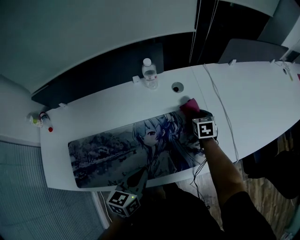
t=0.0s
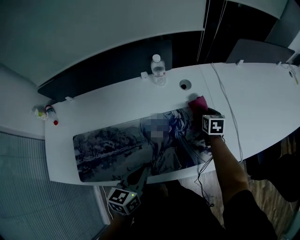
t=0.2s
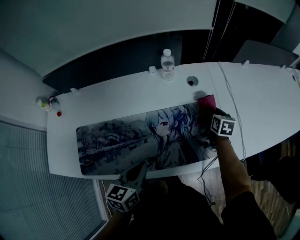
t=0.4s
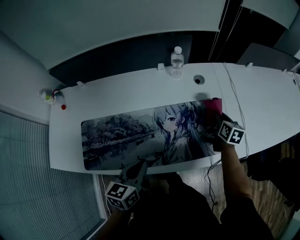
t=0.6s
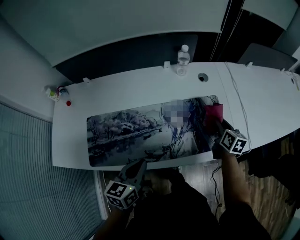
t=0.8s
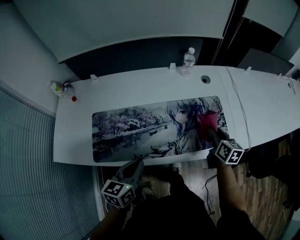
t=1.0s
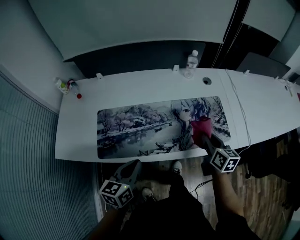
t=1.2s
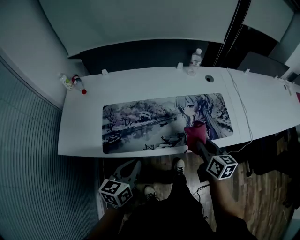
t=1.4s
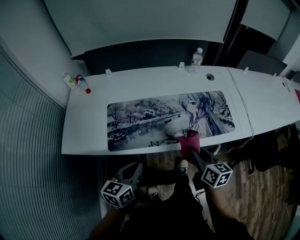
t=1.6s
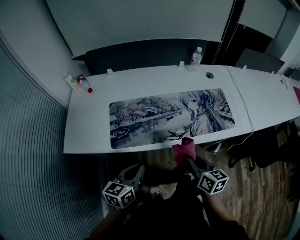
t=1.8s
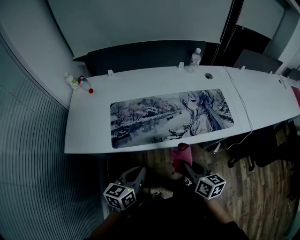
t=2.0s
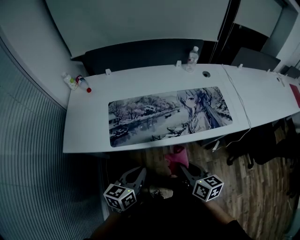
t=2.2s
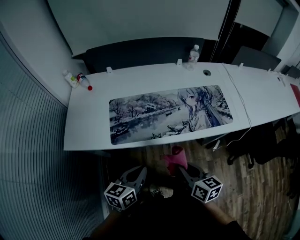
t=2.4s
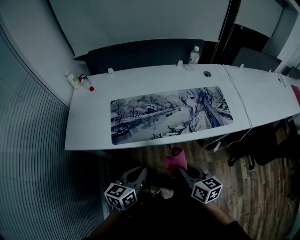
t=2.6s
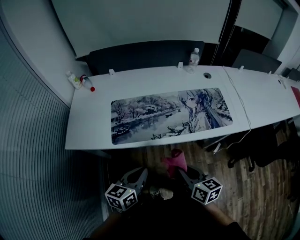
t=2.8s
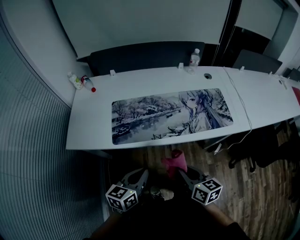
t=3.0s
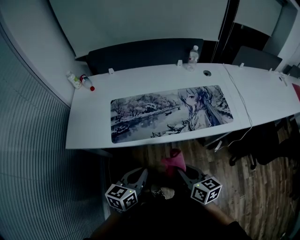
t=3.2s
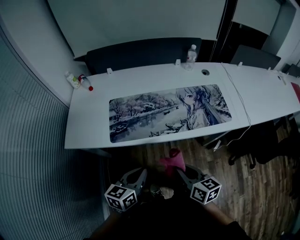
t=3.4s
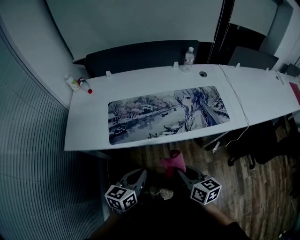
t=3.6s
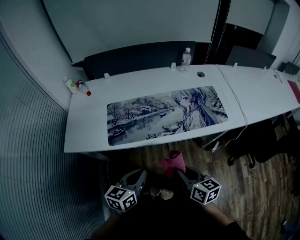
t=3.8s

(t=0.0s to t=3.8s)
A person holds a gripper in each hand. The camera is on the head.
t=0.0s - t=1.2s: The right gripper moves backward, to the left and upward, some 35 cm, and turns by approximately 30 degrees, while the left gripper moves to the left and backward, about 25 cm.
t=1.2s - t=2.6s: The left gripper heads backward, covering approximately 15 cm; the right gripper moves backward and to the left, about 30 cm.
t=2.6s - t=3.8s: The grippers make only small movements.

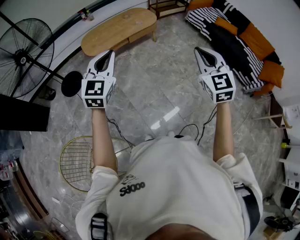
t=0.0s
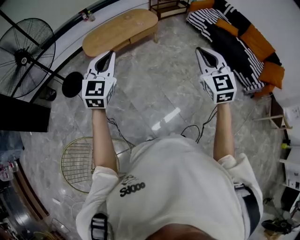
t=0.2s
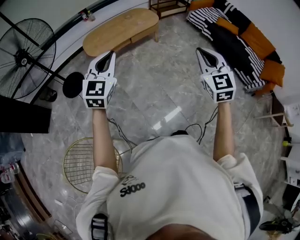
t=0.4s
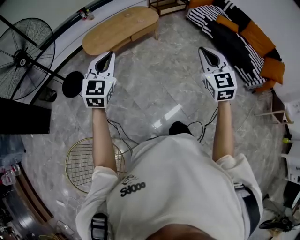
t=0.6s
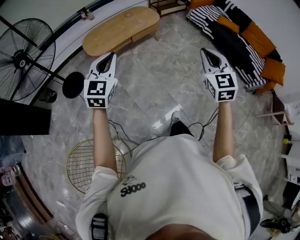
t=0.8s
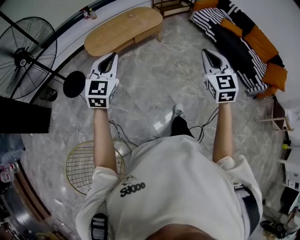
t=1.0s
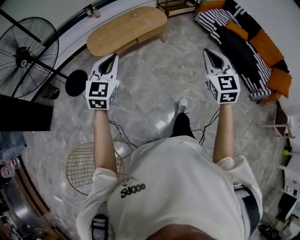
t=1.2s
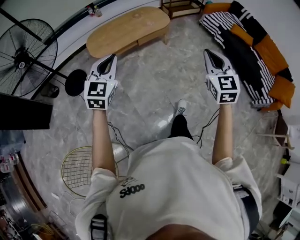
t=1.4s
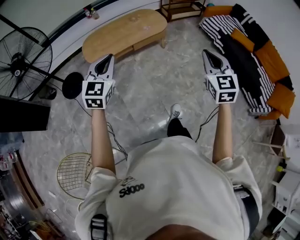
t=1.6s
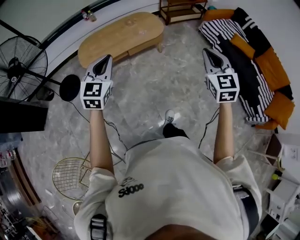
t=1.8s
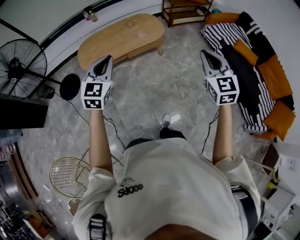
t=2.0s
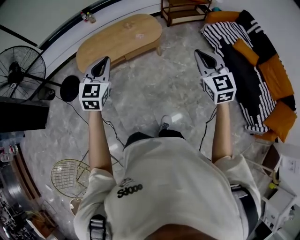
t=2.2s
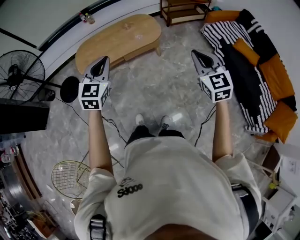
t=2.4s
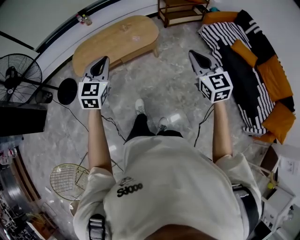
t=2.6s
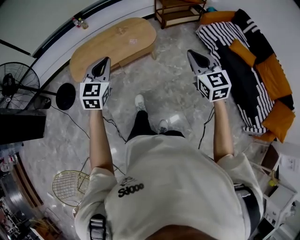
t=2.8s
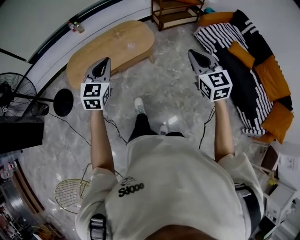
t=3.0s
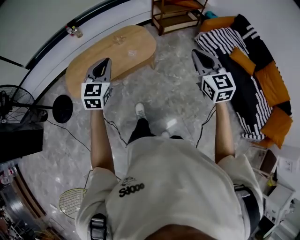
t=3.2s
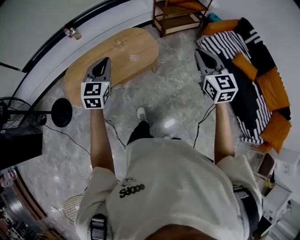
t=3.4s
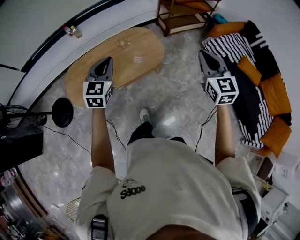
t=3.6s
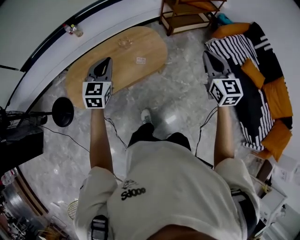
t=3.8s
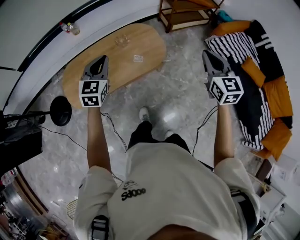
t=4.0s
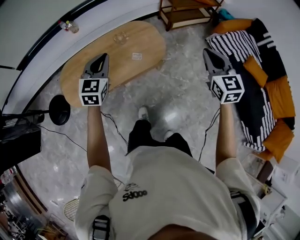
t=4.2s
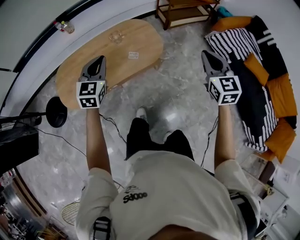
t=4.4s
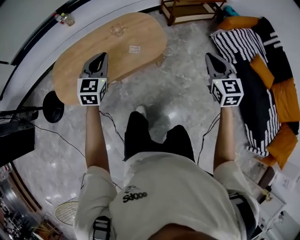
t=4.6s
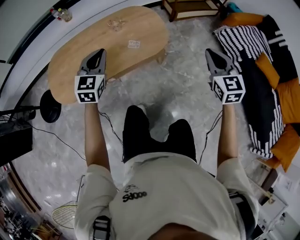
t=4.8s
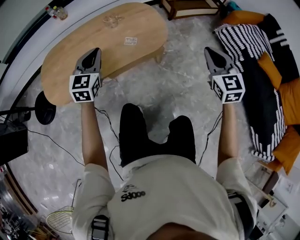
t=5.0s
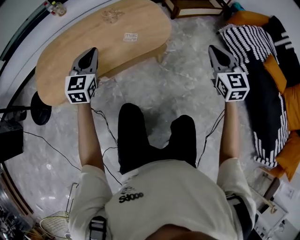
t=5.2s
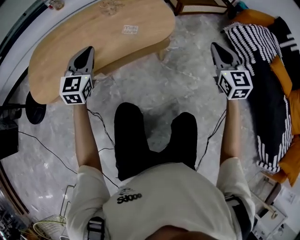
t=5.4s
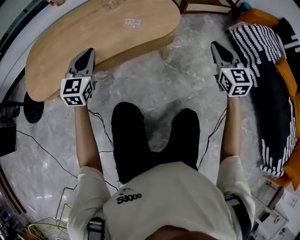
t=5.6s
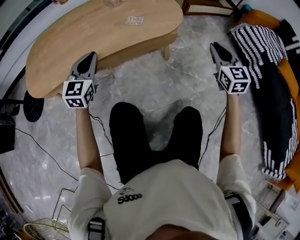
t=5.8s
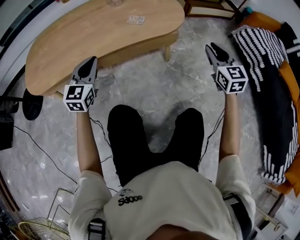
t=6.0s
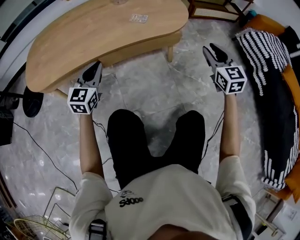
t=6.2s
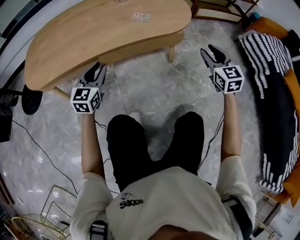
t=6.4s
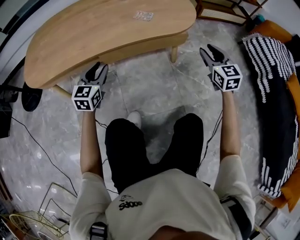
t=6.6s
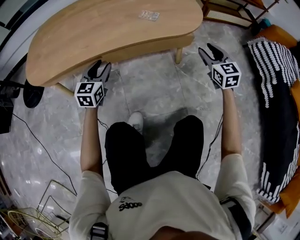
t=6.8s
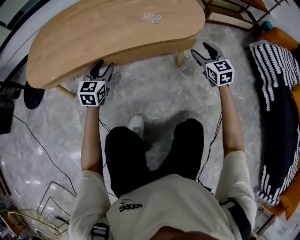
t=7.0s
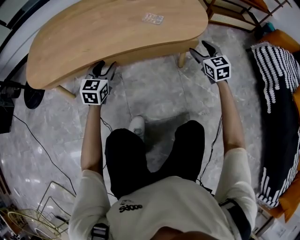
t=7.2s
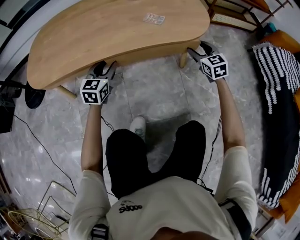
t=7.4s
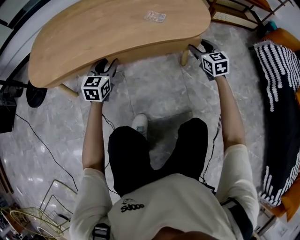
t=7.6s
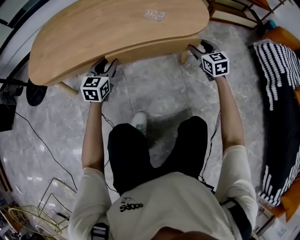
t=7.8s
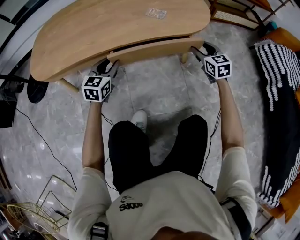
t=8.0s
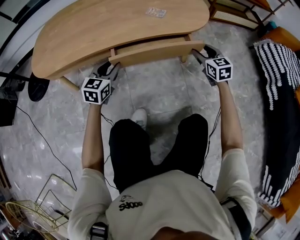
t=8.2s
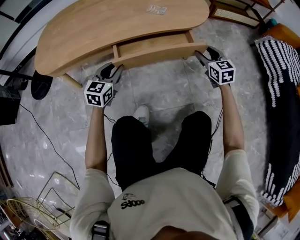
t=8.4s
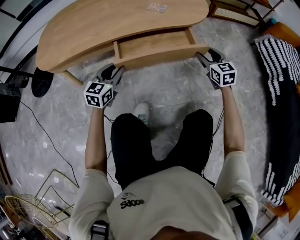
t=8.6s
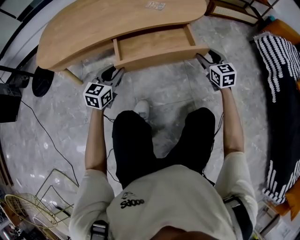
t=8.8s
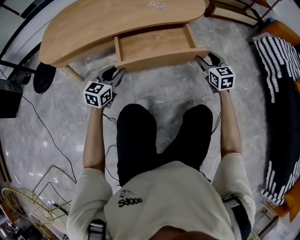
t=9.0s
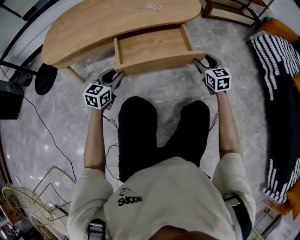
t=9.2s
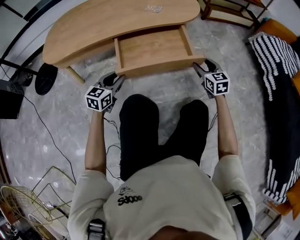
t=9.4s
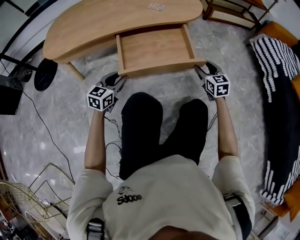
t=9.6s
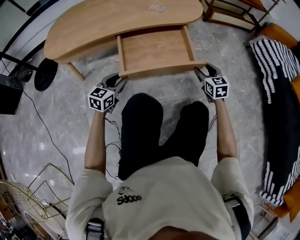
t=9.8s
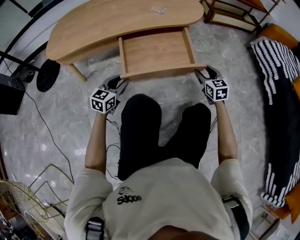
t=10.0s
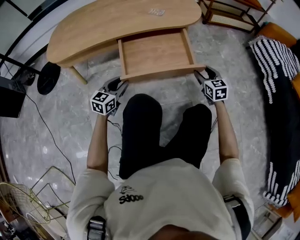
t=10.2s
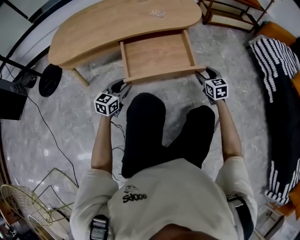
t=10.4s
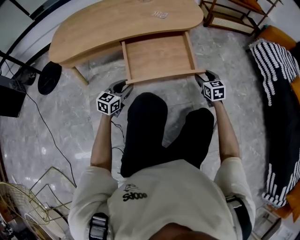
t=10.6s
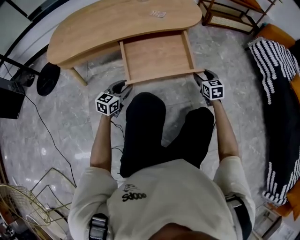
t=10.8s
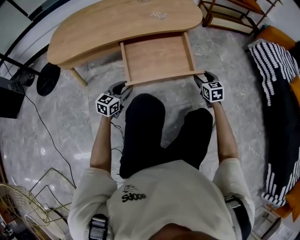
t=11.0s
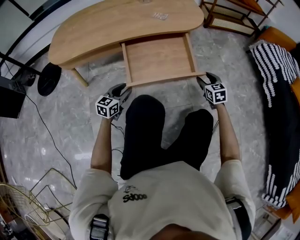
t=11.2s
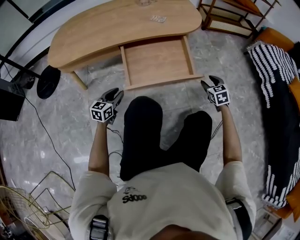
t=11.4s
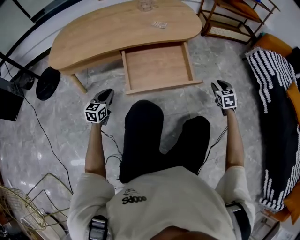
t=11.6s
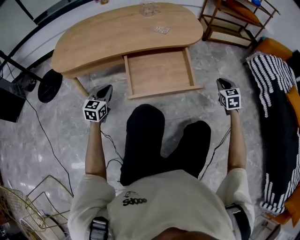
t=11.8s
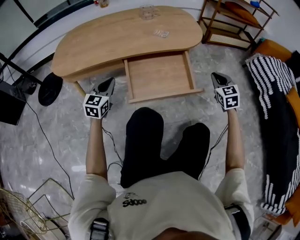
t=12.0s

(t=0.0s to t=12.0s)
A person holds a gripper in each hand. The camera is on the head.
t=0.0s - t=1.6s: The two grippers go approximately 25 cm forward.
t=1.6s - t=3.0s: Both grippers move forward and to the right, roughly 30 cm.
t=3.0s - t=4.4s: Both grippers move forward and downward, roughly 30 cm.
t=4.4s - t=6.0s: Both grippers move downward, some 40 cm.
t=6.0s - t=7.6s: The left gripper travels downward and forward by approximately 15 cm, and opens its fingers, while the right gripper travels downward, forward and to the left by about 25 cm, and opens its fingers.
t=7.6s - t=9.0s: Both grippers travel together backward, roughly 15 cm.
t=9.0s - t=10.4s: Both grippers move backward, about 5 cm.
t=10.4s - t=12.0s: The left gripper goes roughly 15 cm upward, to the left and forward, and closes up. The right gripper shifts some 10 cm upward, and closes its fingers.

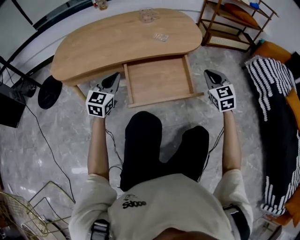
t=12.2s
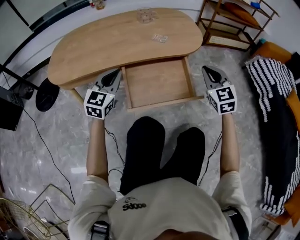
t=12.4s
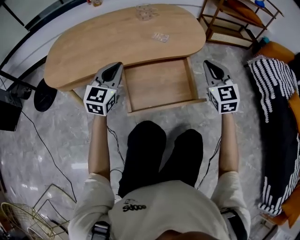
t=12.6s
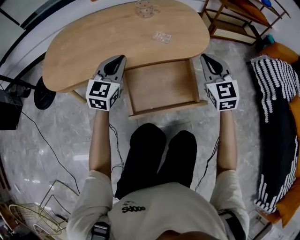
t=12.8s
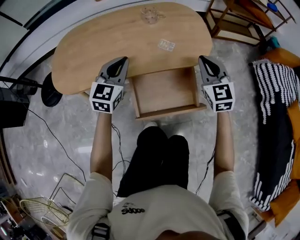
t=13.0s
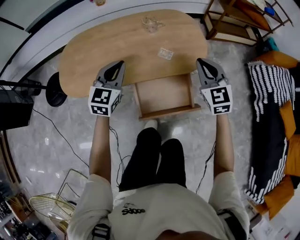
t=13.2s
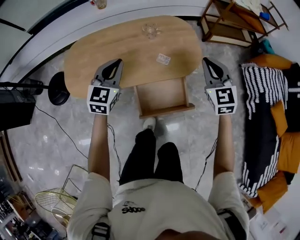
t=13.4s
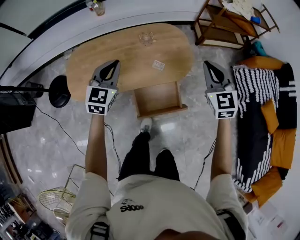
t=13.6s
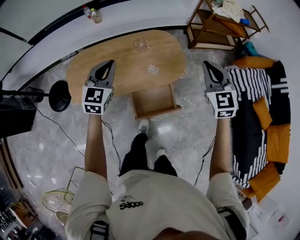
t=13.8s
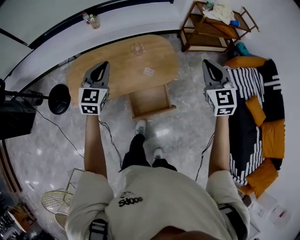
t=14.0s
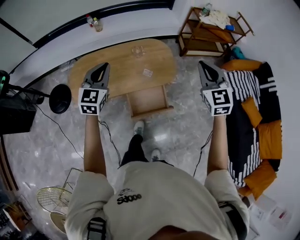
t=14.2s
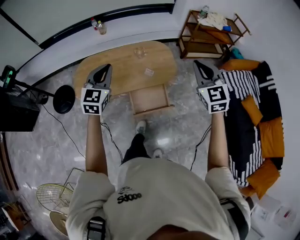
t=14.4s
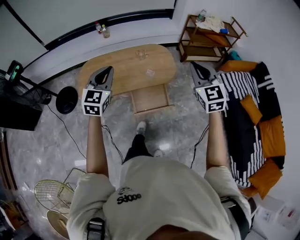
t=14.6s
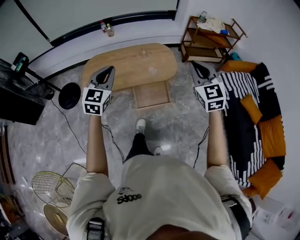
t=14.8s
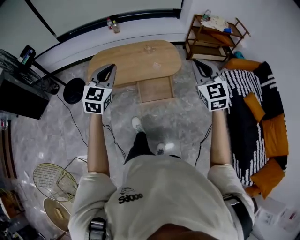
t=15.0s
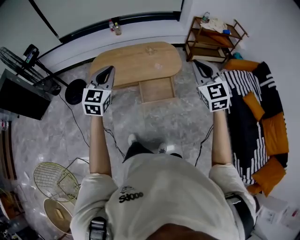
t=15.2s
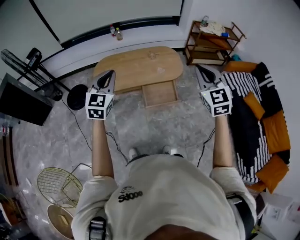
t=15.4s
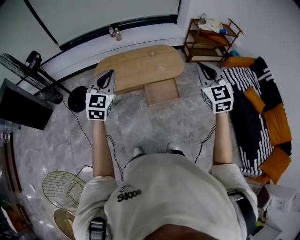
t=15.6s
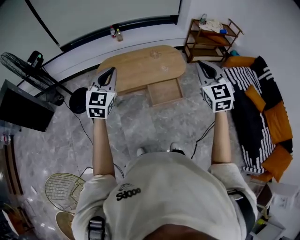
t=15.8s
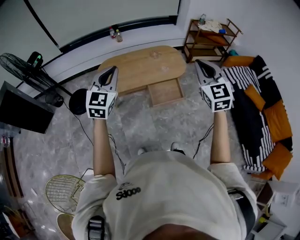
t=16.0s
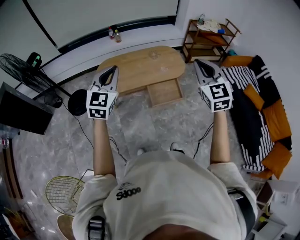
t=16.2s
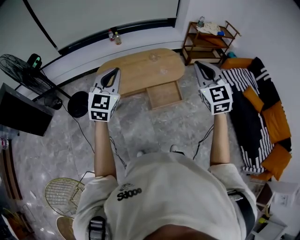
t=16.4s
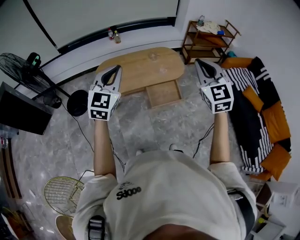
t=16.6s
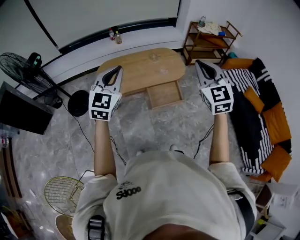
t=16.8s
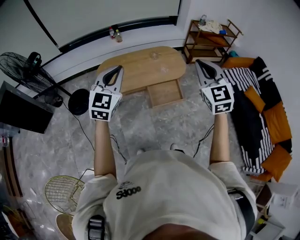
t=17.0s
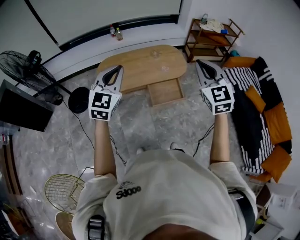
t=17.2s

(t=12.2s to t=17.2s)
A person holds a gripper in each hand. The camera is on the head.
t=12.2s - t=13.8s: The two grippers go approximately 50 cm upward.
t=13.8s - t=15.6s: Both grippers are carried backward, approximately 40 cm. The grippers both shift upward by approximately 20 cm.
t=15.6s - t=17.2s: The right gripper moves to the left, some 5 cm.

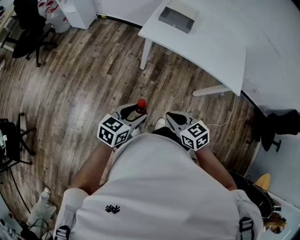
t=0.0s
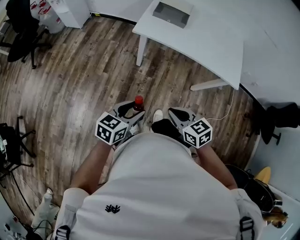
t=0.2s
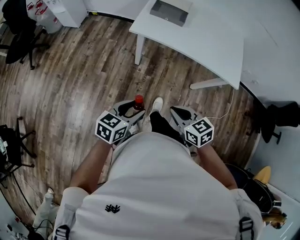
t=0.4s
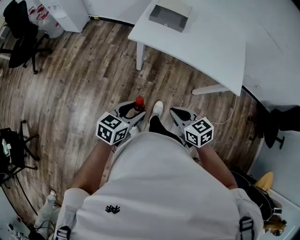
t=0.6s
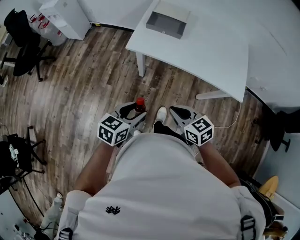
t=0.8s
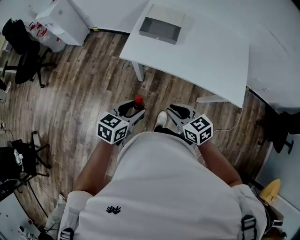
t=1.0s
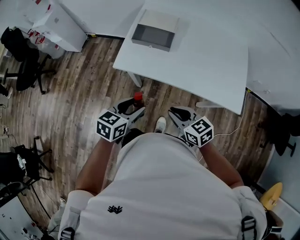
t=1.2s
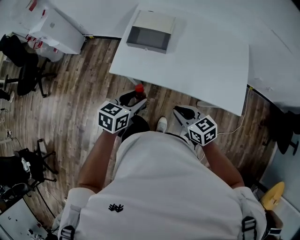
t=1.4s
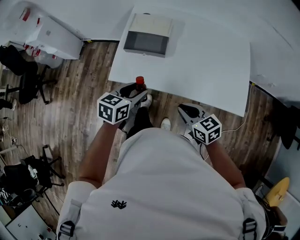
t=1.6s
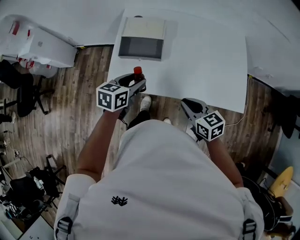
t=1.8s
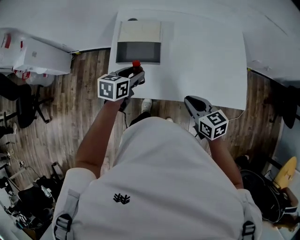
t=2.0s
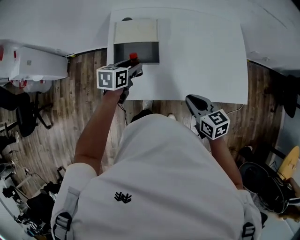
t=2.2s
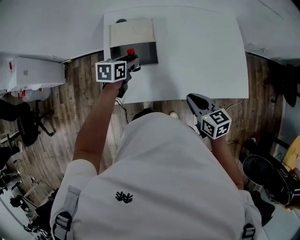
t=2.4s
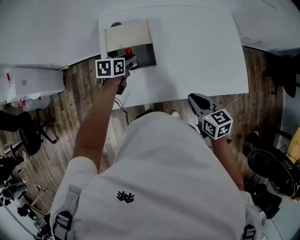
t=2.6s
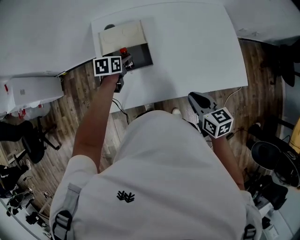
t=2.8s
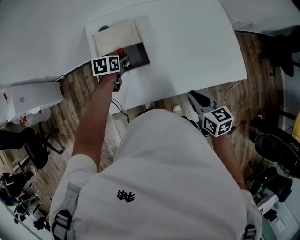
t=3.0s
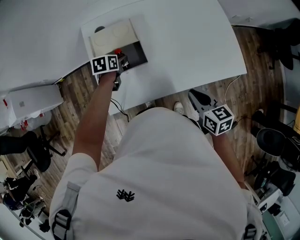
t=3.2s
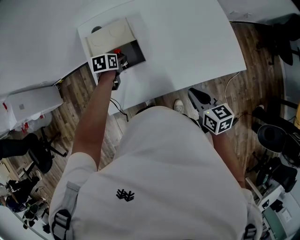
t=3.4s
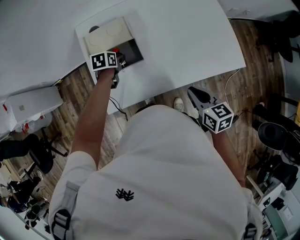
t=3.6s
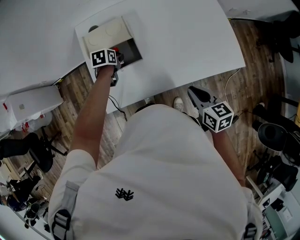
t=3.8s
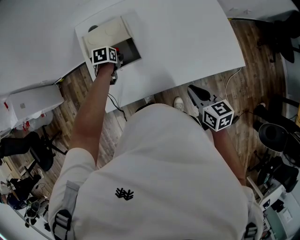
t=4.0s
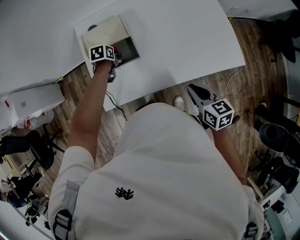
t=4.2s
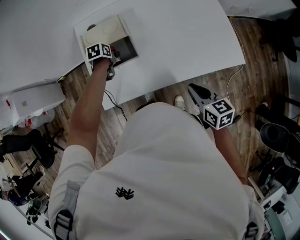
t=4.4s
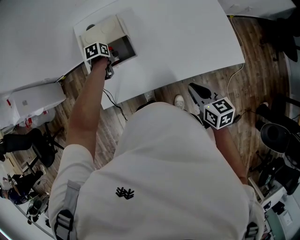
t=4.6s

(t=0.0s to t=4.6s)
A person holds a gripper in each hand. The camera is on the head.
t=0.0s - t=1.6s: The right gripper is displaced forward and to the right by roughly 30 cm. Meanwhile the left gripper heads forward, covering roughly 35 cm.
t=1.6s - t=3.0s: The left gripper changes place by about 30 cm, while the right gripper moves about 5 cm, and changes its angle by approximately 40 degrees.
t=3.0s - t=4.6s: The left gripper swivels about 20 degrees, while the right gripper shifts by approximately 5 cm.
